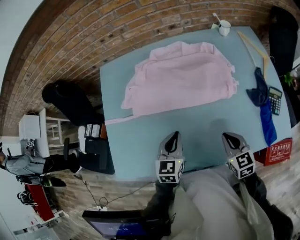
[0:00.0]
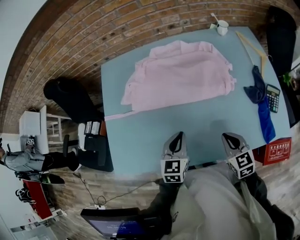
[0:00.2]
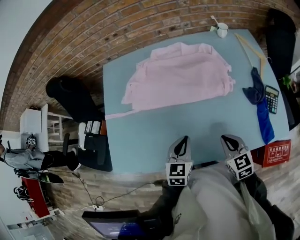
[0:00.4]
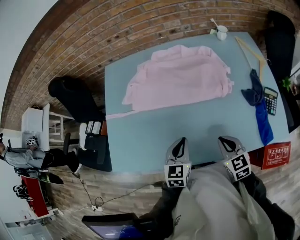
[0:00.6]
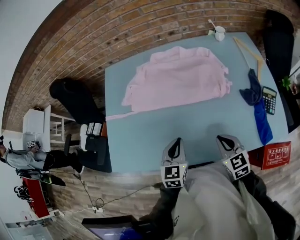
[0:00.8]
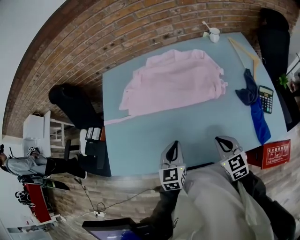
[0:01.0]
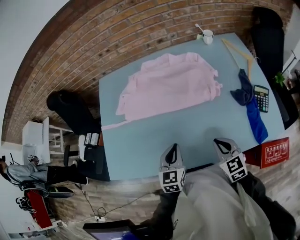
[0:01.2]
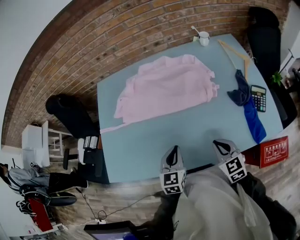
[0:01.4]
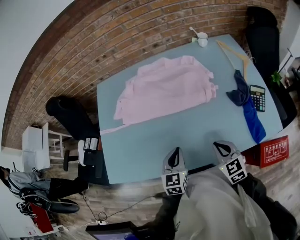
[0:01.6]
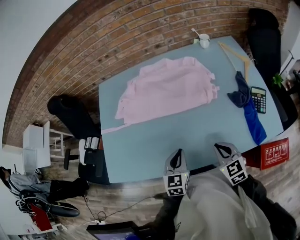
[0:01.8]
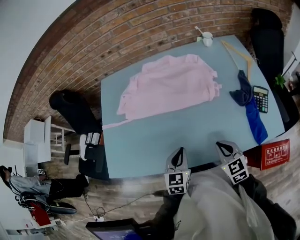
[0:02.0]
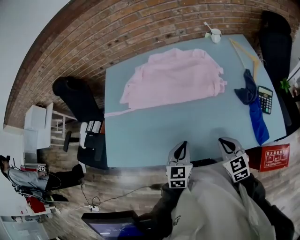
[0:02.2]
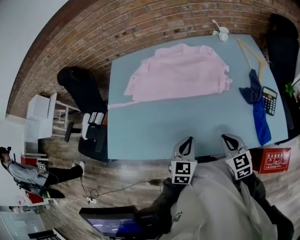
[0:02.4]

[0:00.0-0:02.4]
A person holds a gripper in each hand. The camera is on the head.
0:00.0 to 0:01.2: The left gripper moves backward, roughly 5 cm, while the right gripper ends up about 5 cm from where it was.
0:01.2 to 0:02.4: The left gripper is displaced to the right by about 5 cm.

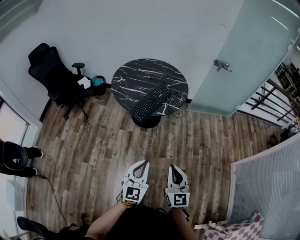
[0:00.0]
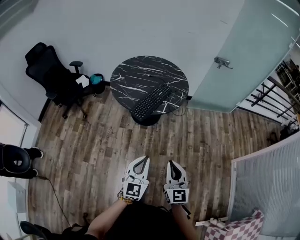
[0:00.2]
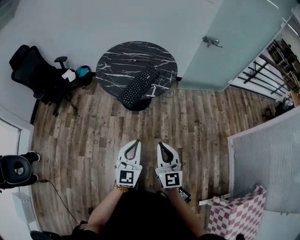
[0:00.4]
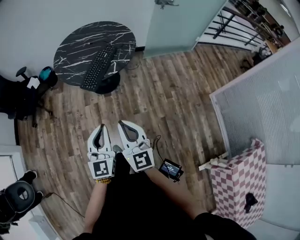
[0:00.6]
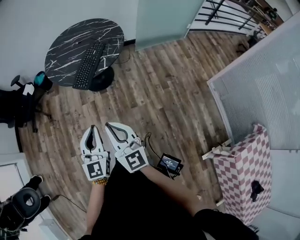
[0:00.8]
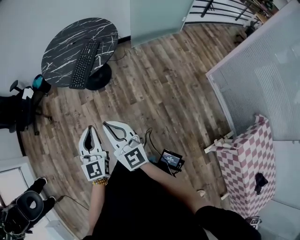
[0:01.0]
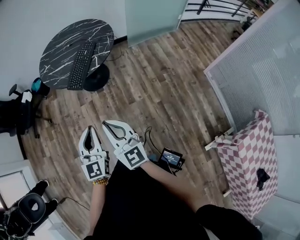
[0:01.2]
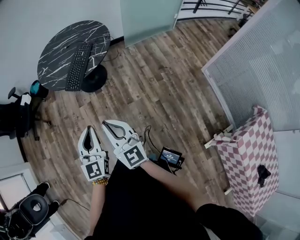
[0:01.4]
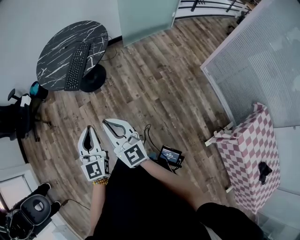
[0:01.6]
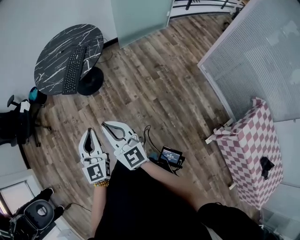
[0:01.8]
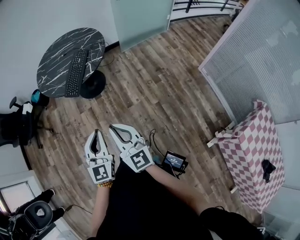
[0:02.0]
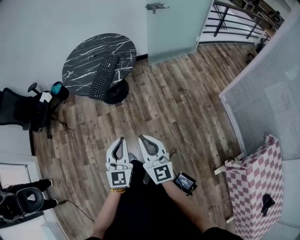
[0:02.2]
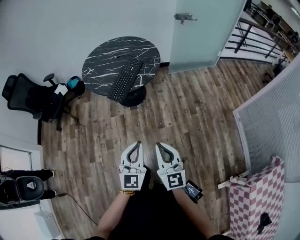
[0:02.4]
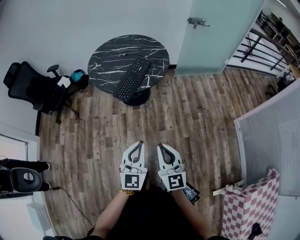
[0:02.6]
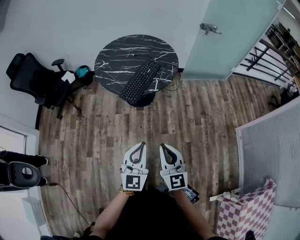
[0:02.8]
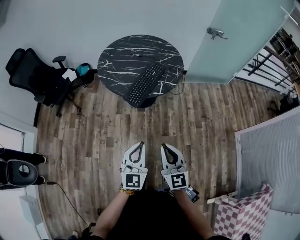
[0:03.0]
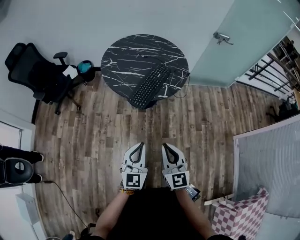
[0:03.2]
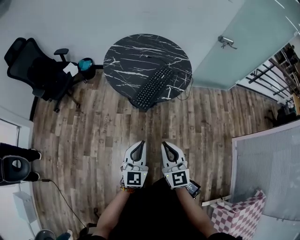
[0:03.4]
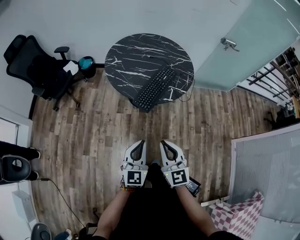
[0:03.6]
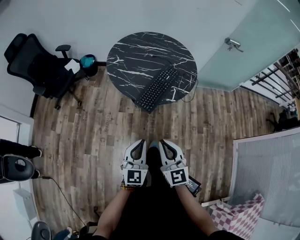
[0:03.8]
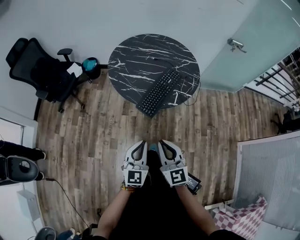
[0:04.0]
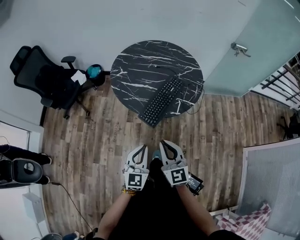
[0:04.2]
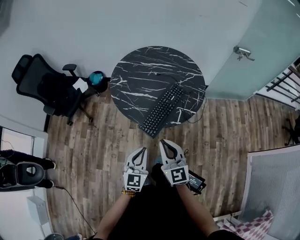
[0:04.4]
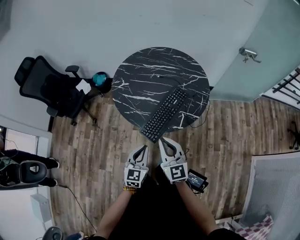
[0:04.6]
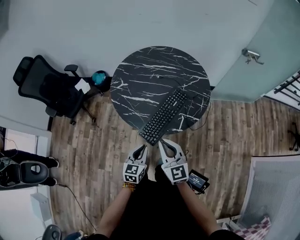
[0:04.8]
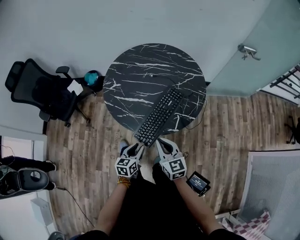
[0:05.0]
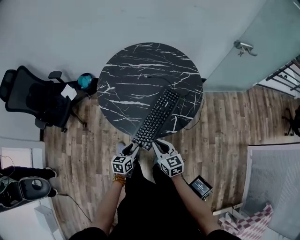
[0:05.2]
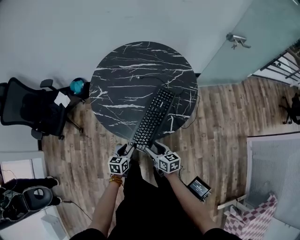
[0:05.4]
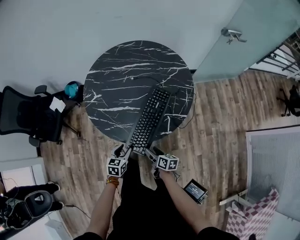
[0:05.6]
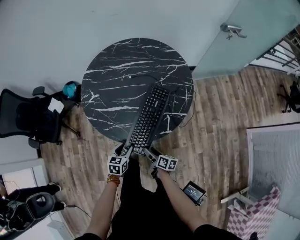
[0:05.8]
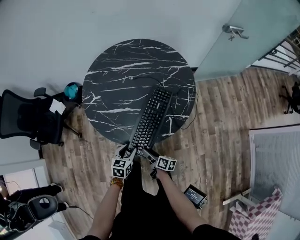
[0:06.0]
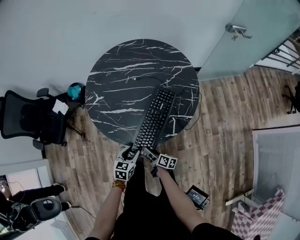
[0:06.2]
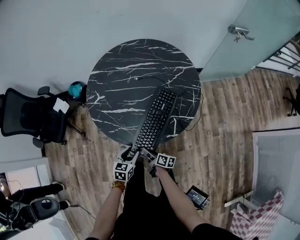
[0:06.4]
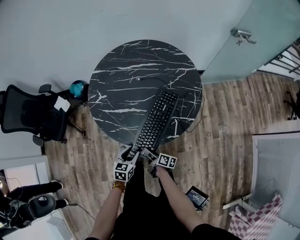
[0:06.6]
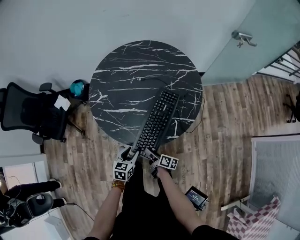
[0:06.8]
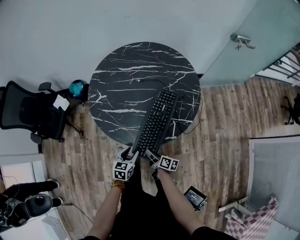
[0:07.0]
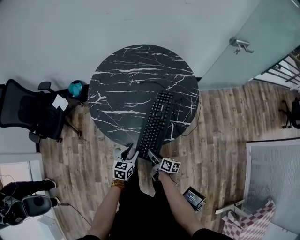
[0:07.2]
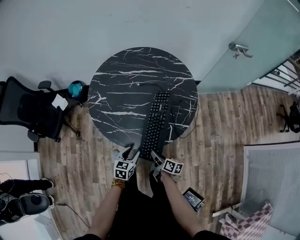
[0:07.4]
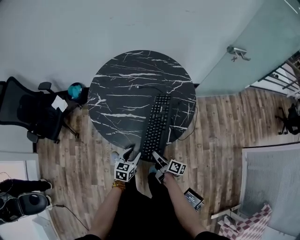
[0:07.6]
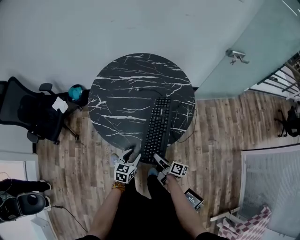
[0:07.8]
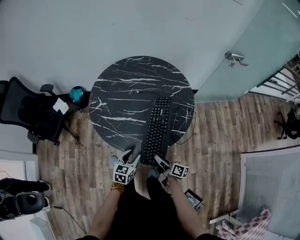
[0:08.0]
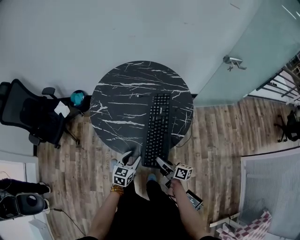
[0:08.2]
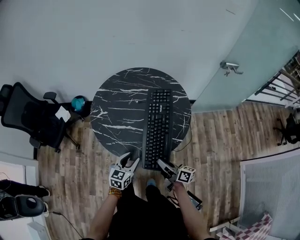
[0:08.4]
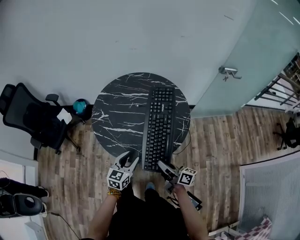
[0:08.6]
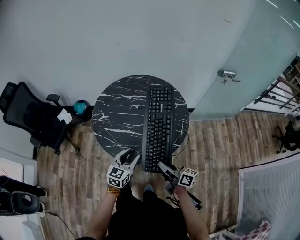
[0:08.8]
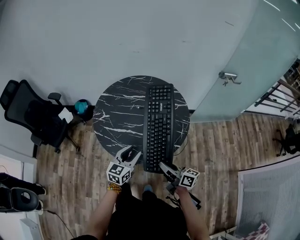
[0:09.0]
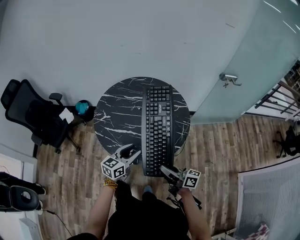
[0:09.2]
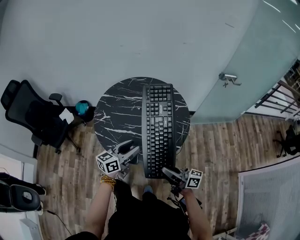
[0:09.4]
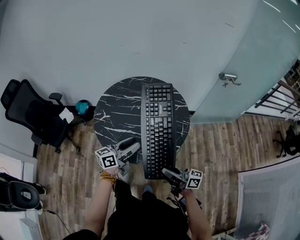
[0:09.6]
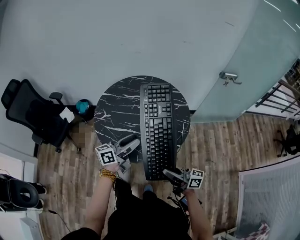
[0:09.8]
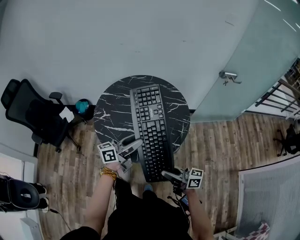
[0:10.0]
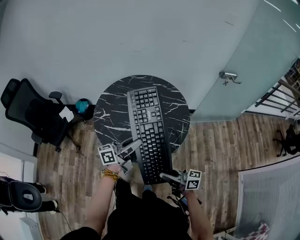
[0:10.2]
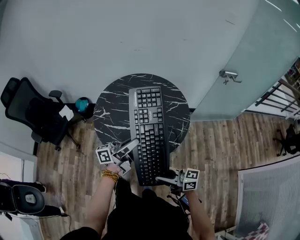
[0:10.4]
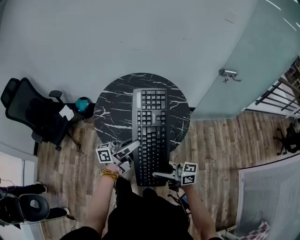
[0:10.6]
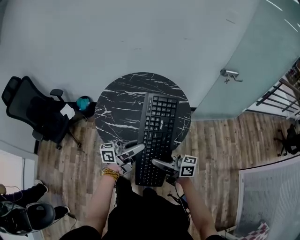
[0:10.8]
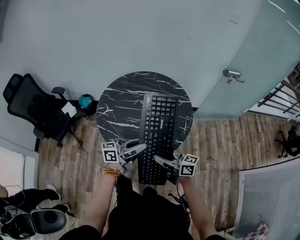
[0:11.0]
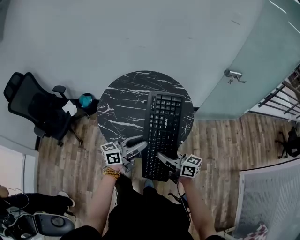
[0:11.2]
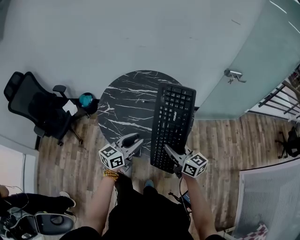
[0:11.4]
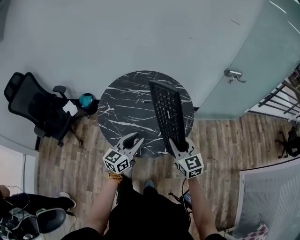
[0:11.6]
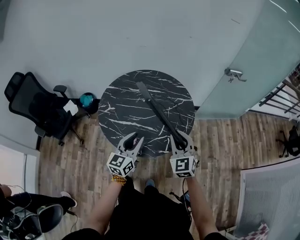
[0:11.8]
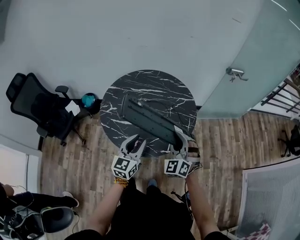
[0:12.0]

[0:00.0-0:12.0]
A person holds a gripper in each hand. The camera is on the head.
0:00.0 to 0:01.6: The right gripper moves about 5 cm.
0:01.6 to 0:03.0: The left gripper goes approximately 10 cm forward and to the left; the right gripper travels forward by some 10 cm.
0:03.0 to 0:04.4: The grippers both shift forward by some 25 cm.
0:04.4 to 0:06.0: The right gripper moves downward, about 35 cm, twists roughly 80 degrees clockwise, seen from behind, and opens its fingers. Meanwhile the left gripper travels downward and forward by about 25 cm, points its fingers roughly 30 degrees further downward, and opens its fingers.
0:06.0 to 0:07.6: The right gripper travels upward and to the right by about 10 cm, and closes.
0:07.6 to 0:09.0: The grippers both shift upward by about 20 cm. The right gripper turns by roughly 30 degrees; the left gripper changes its angle by approximately 20 degrees.
0:09.0 to 0:10.4: The right gripper moves about 10 cm, and swivels about 30 degrees. Meanwhile the left gripper heads upward, covering about 10 cm, and angles its fingers upward, by about 40 degrees.
0:10.4 to 0:12.0: The right gripper ends up roughly 15 cm from where it was, and changes its angle by roughly 100 degrees. Meanwhile the left gripper turns by roughly 70 degrees.

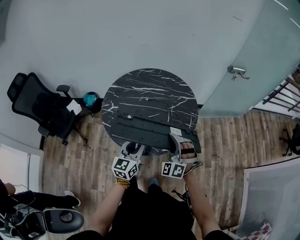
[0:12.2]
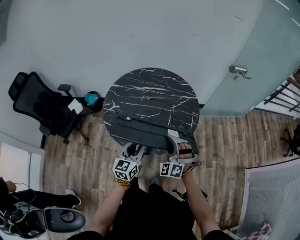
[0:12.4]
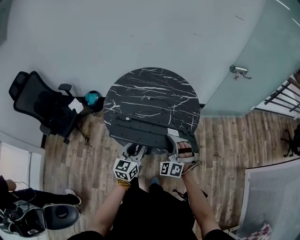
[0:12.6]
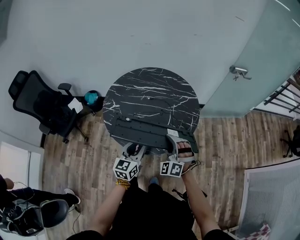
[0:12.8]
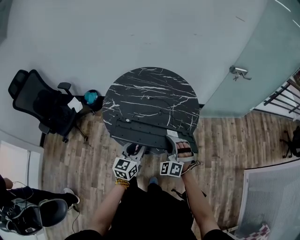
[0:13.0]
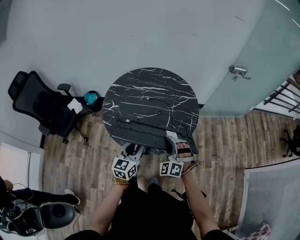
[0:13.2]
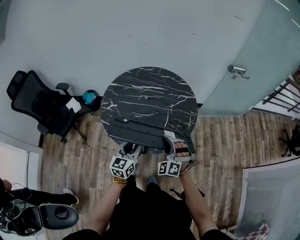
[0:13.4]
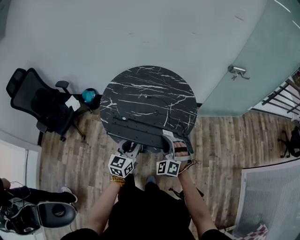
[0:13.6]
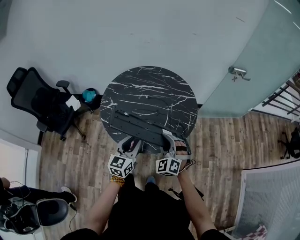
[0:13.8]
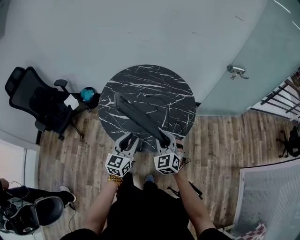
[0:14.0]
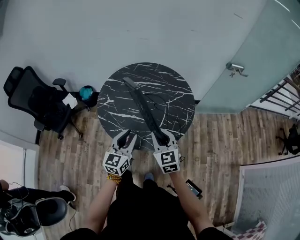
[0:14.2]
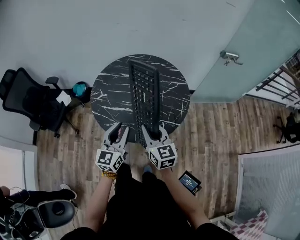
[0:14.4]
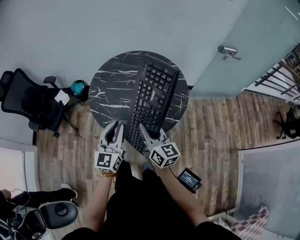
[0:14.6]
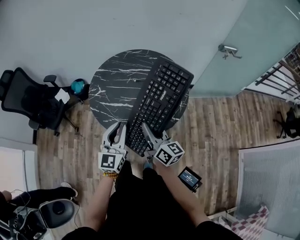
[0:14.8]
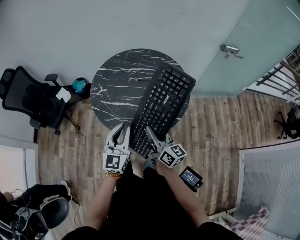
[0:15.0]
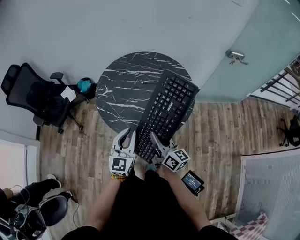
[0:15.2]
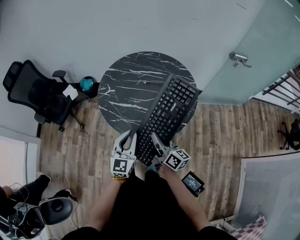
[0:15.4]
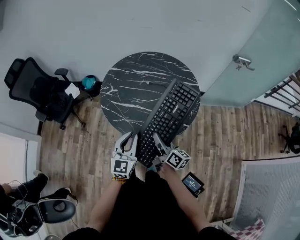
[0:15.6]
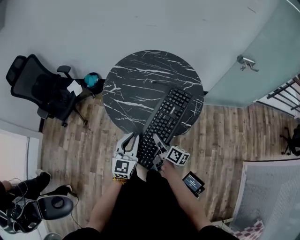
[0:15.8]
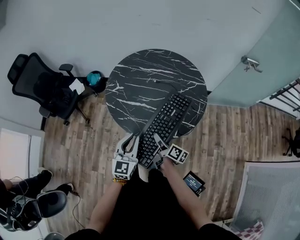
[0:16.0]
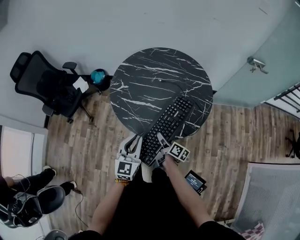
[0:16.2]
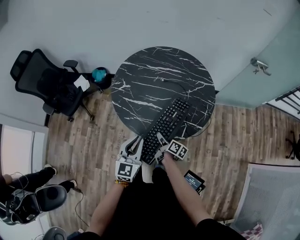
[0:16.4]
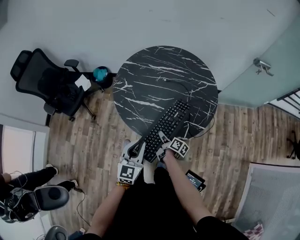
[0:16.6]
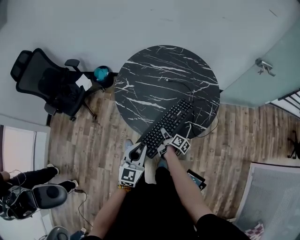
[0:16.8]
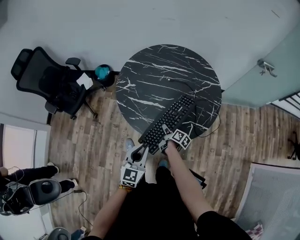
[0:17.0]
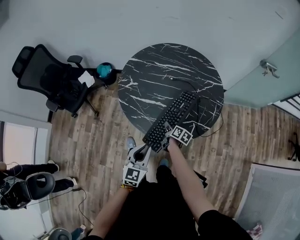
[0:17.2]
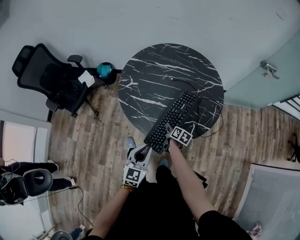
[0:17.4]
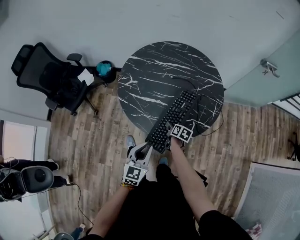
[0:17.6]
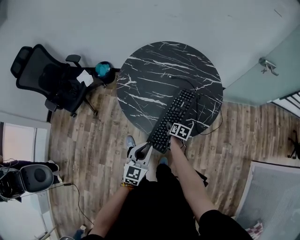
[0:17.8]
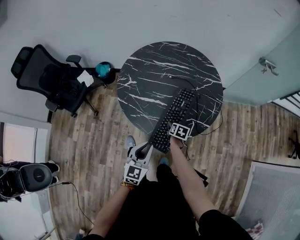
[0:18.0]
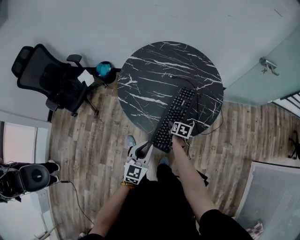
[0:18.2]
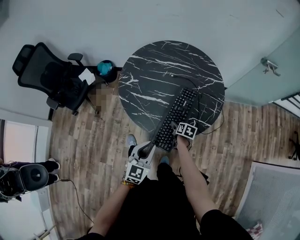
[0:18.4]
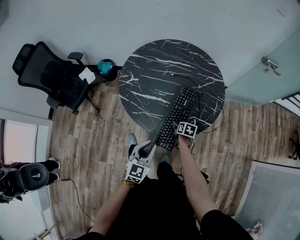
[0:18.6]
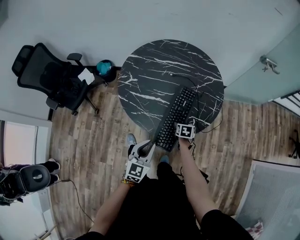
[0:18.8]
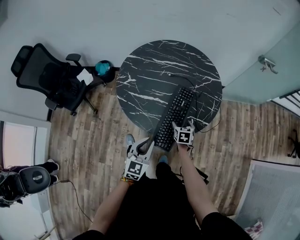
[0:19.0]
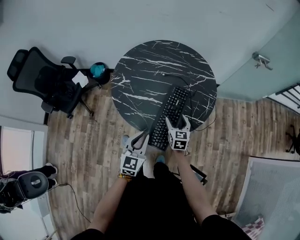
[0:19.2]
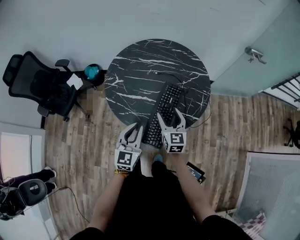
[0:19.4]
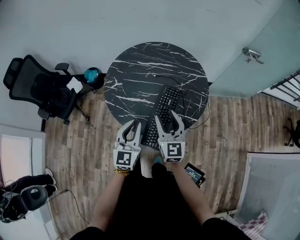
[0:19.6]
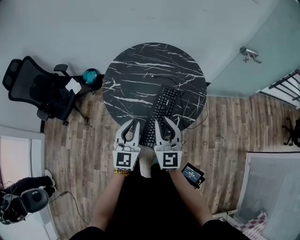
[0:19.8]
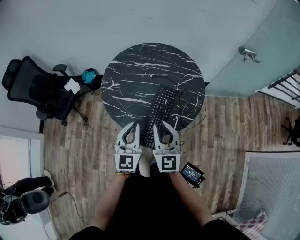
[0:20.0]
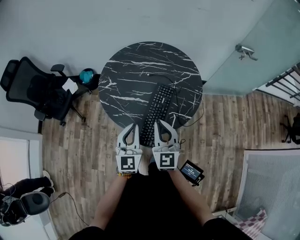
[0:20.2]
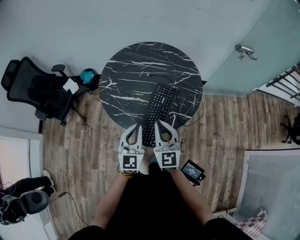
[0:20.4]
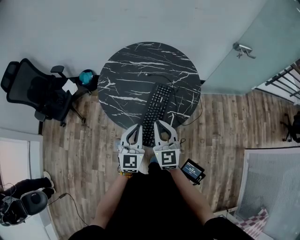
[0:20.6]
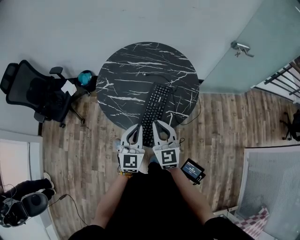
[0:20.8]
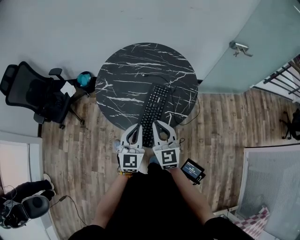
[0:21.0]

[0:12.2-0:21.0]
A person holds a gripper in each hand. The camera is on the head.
0:12.2 to 0:13.6: The grippers move only a little.
0:13.6 to 0:15.2: The right gripper rolls clockwise, seen from behind, by roughly 90 degrees.
0:15.2 to 0:16.6: The right gripper is displaced downward by about 25 cm, and rotates roughly 50 degrees. Meanwhile the left gripper moves downward and to the left, approximately 10 cm.
0:16.6 to 0:18.0: The right gripper shifts about 5 cm to the right, tilts its fingers some 30 degrees downward, and opens its fingers.
0:18.0 to 0:19.6: The right gripper shifts some 30 cm upward, and tips its fingers upward by roughly 50 degrees, while the left gripper travels upward and forward by approximately 10 cm.
0:19.6 to 0:21.0: The right gripper goes about 5 cm backward, and closes its fingers, while the left gripper goes some 5 cm to the right.
